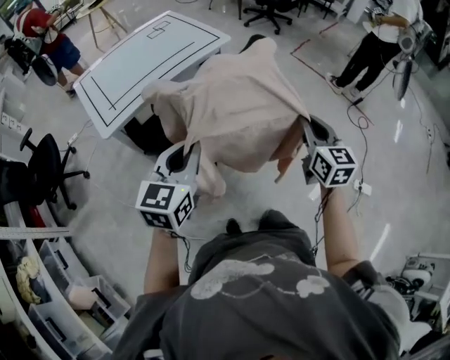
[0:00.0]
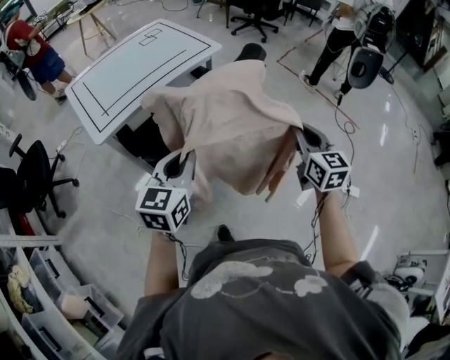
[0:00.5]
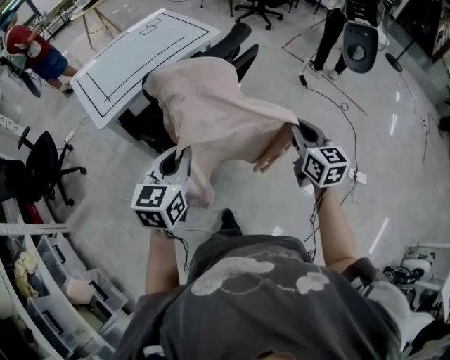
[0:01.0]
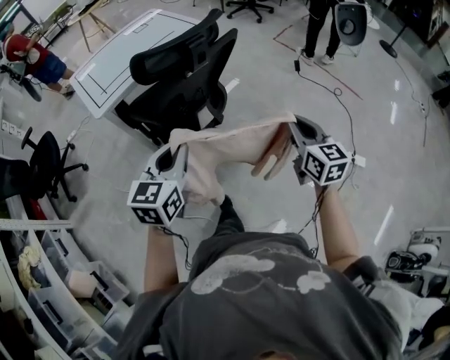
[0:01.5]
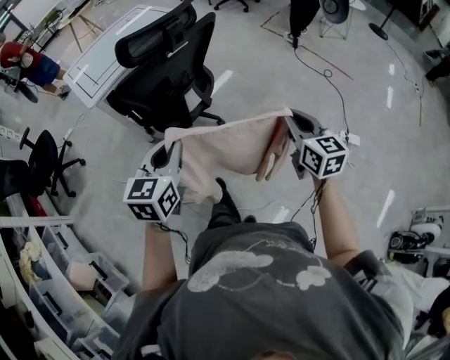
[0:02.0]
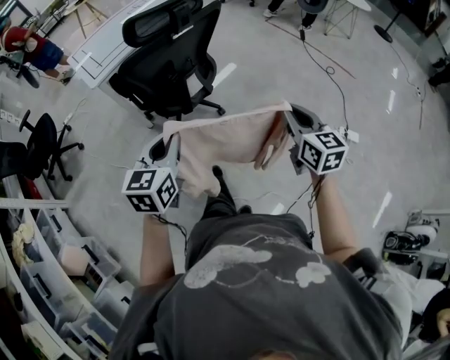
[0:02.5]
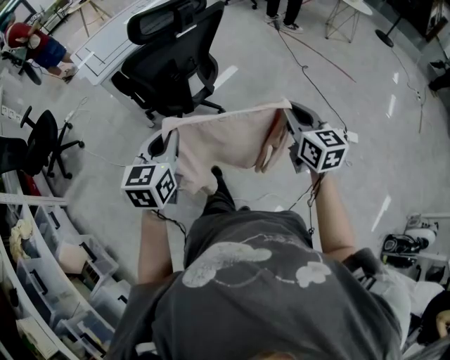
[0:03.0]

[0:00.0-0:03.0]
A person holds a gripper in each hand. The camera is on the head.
0:00.0 to 0:01.5: Both grippers move backward, approximately 15 cm.
0:01.5 to 0:03.0: The two grippers go roughly 15 cm backward.

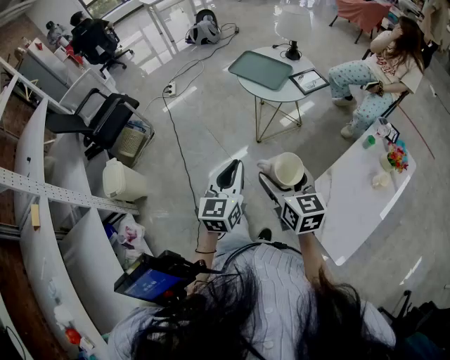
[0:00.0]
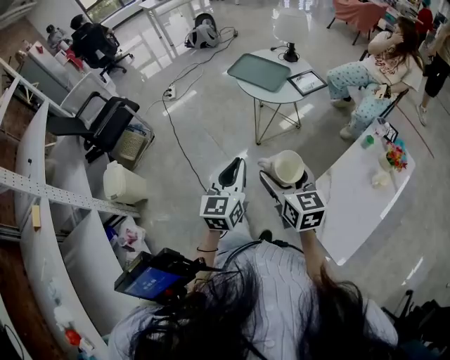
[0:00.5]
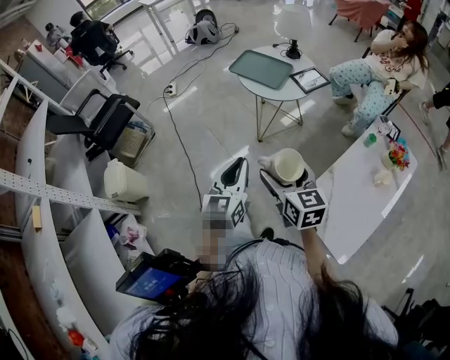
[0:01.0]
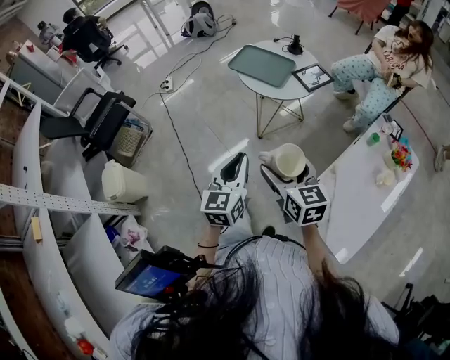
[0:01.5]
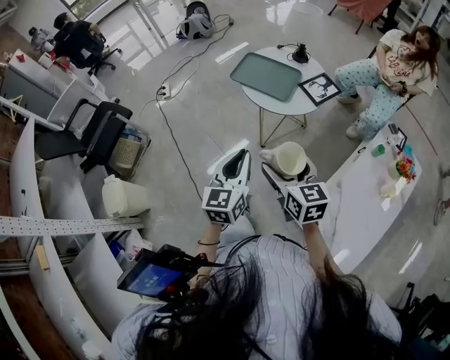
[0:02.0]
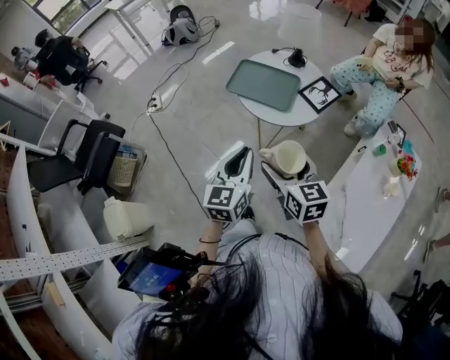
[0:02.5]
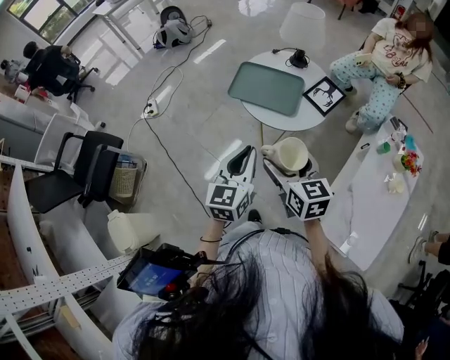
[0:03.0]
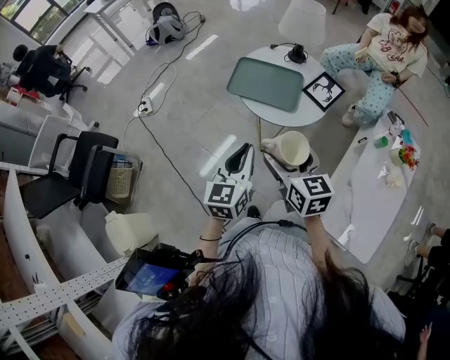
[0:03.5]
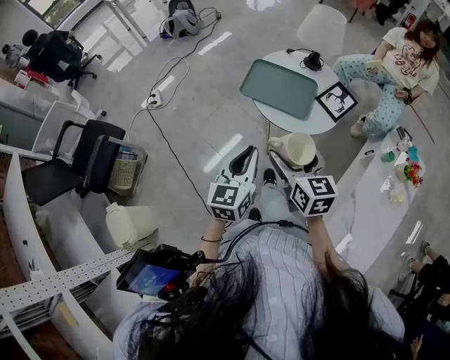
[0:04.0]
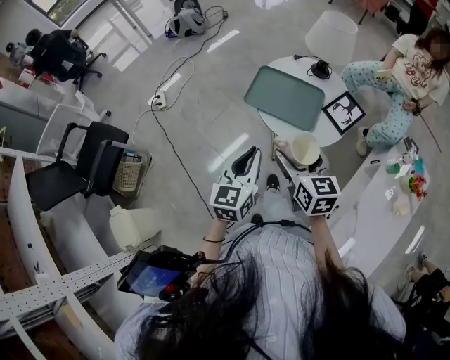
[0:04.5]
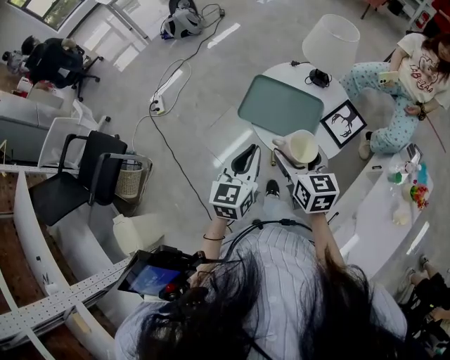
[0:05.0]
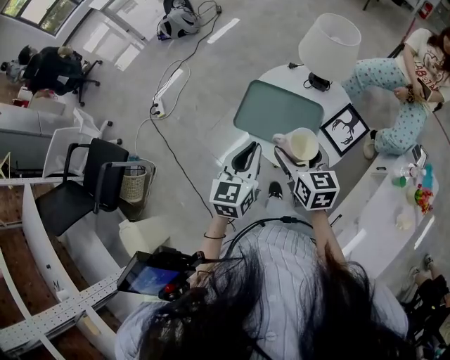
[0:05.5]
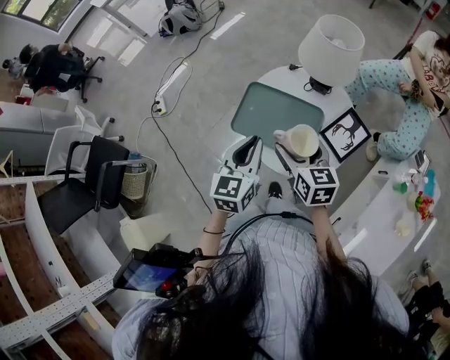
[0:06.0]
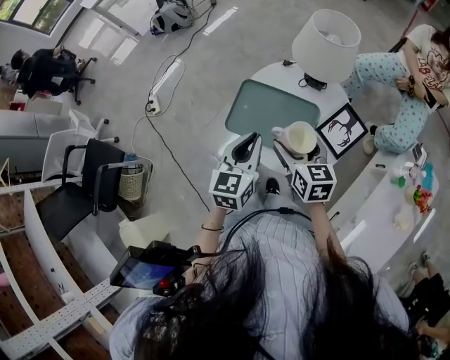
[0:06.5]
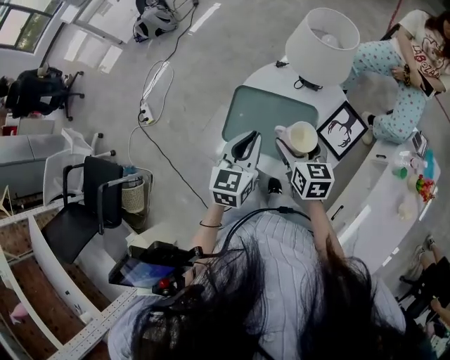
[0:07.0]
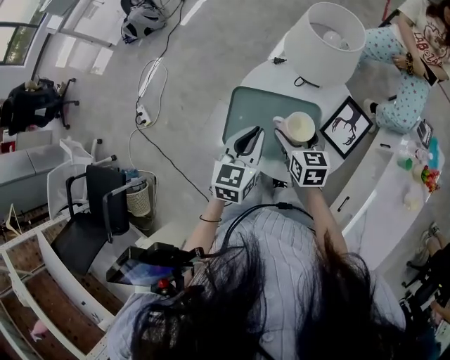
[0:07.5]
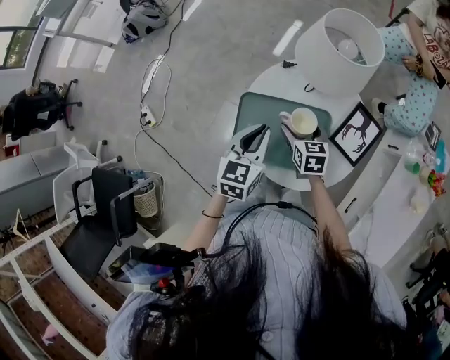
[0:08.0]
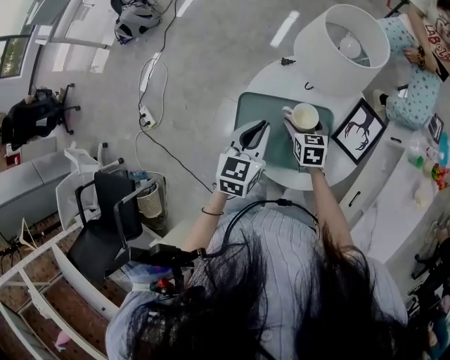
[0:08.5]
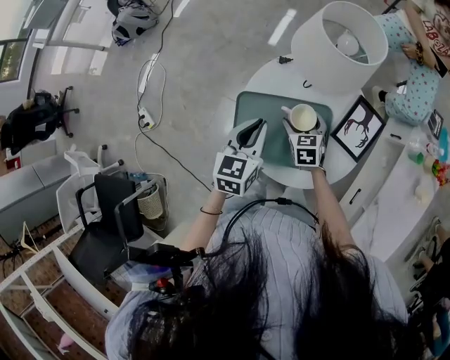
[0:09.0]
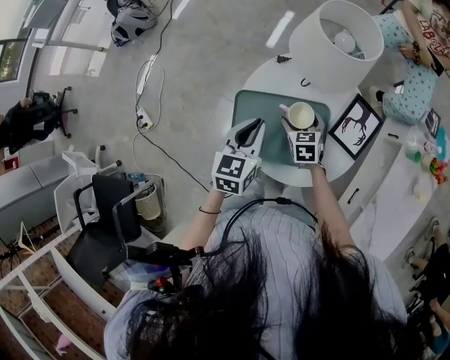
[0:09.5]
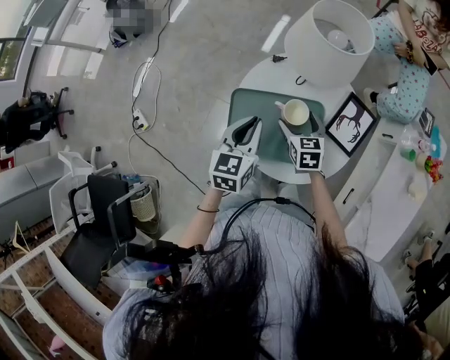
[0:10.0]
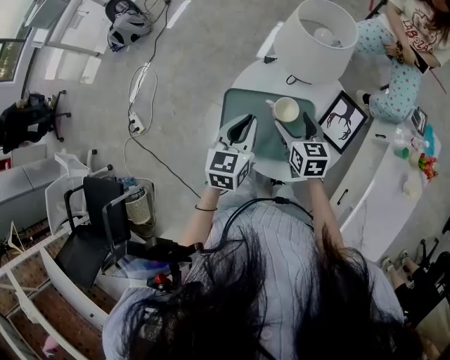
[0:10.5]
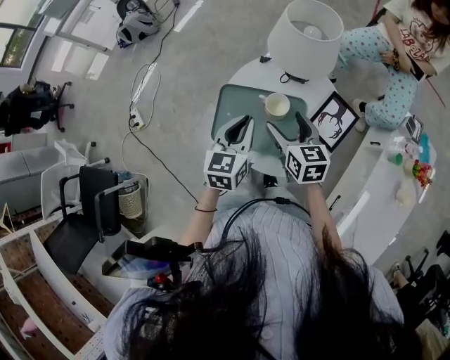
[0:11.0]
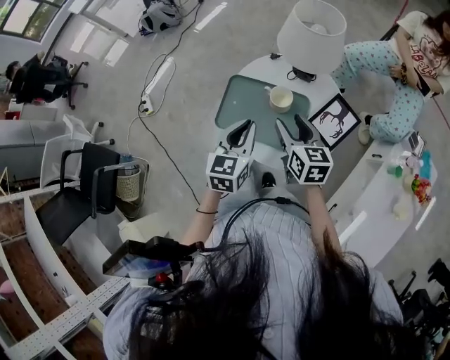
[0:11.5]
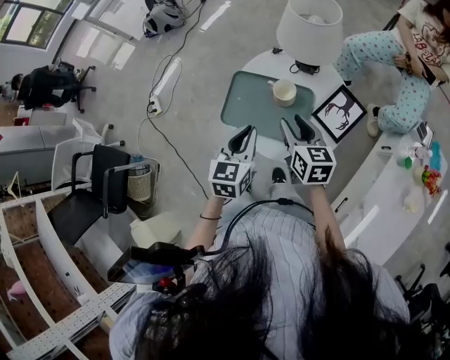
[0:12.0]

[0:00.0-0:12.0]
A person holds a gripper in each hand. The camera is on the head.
0:00.0 to 0:02.0: Both grippers travel together forward, roughly 15 cm.
0:02.0 to 0:04.0: The grippers both shift forward and to the left by some 20 cm.
0:04.0 to 0:06.0: Both grippers travel together forward, about 25 cm.
0:06.0 to 0:08.0: The left gripper heads forward and downward, covering roughly 15 cm, and turns by approximately 20 degrees, while the right gripper heads downward and forward, covering about 20 cm, and swivels approximately 20 degrees.
0:08.0 to 0:10.0: There are only small adjustments of the grippers.
0:10.0 to 0:12.0: The right gripper shifts approximately 15 cm upward and backward, changes its angle by roughly 20 degrees, and closes its fingers. The left gripper shifts about 15 cm backward.

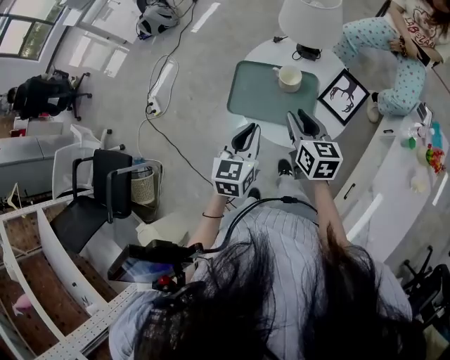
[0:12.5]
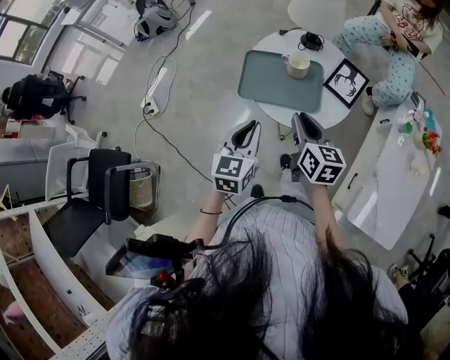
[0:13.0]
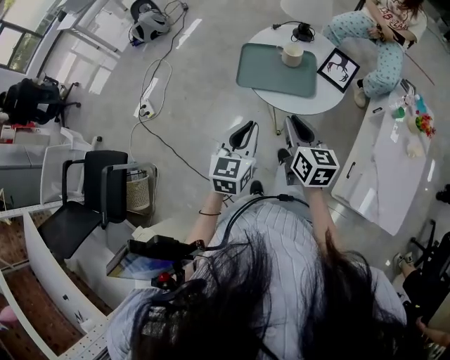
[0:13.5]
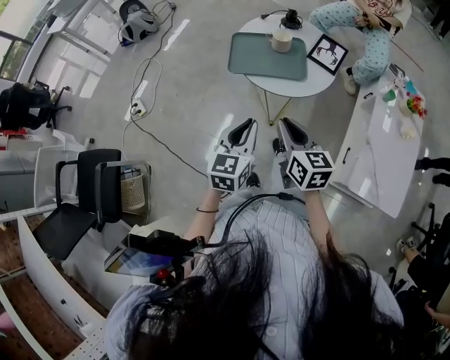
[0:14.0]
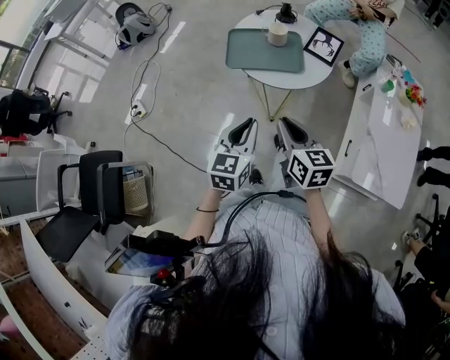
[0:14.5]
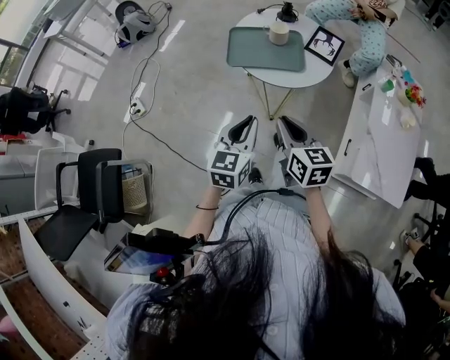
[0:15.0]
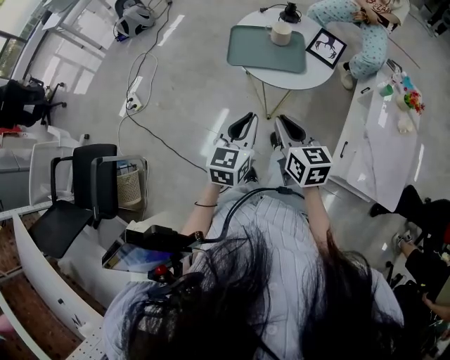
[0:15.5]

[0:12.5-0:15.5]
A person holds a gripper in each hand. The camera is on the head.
0:12.5 to 0:14.0: Both grippers move backward, some 25 cm.
0:14.0 to 0:15.5: There are only small adjustments of the grippers.

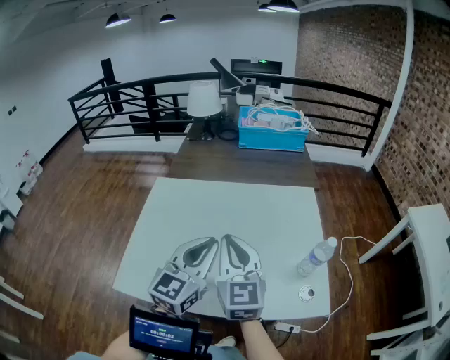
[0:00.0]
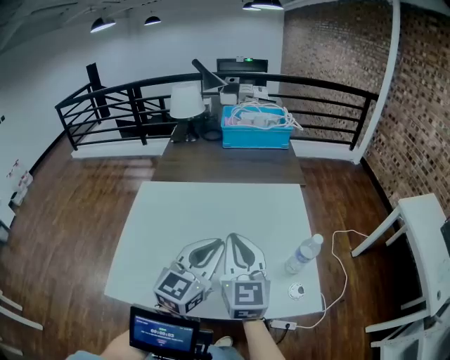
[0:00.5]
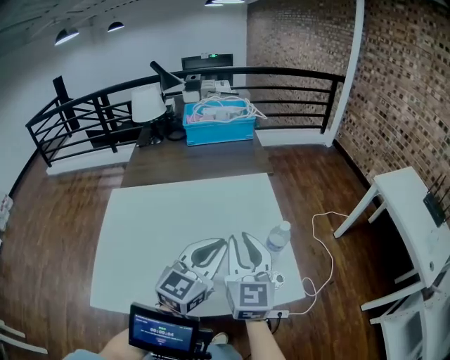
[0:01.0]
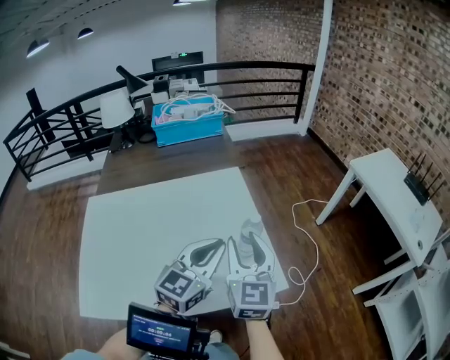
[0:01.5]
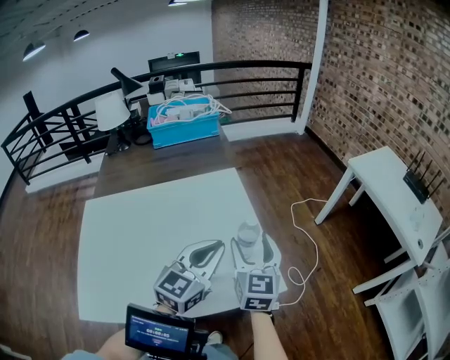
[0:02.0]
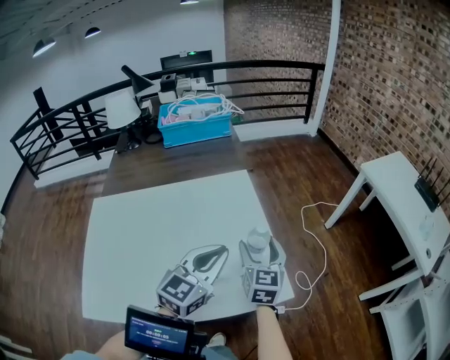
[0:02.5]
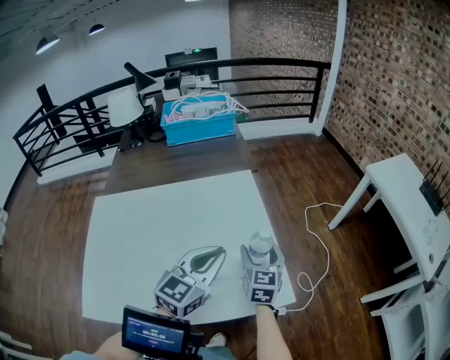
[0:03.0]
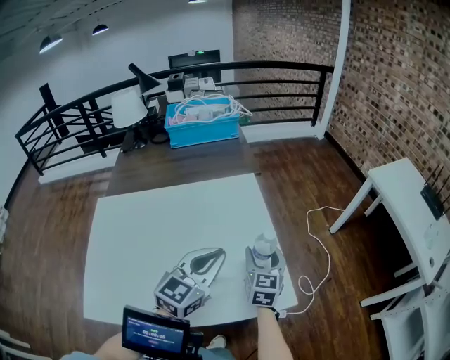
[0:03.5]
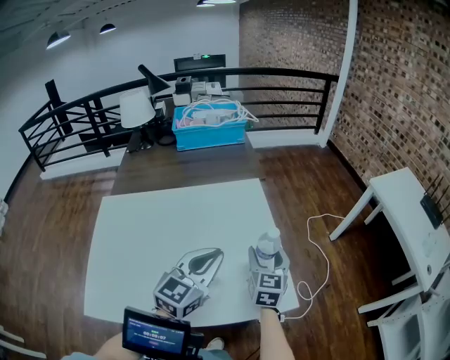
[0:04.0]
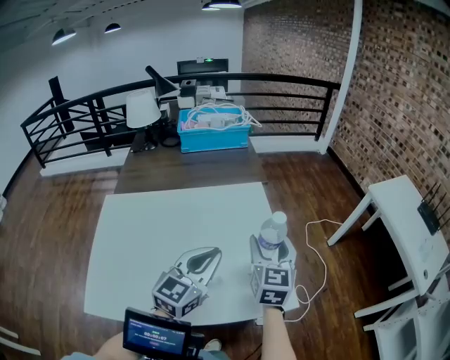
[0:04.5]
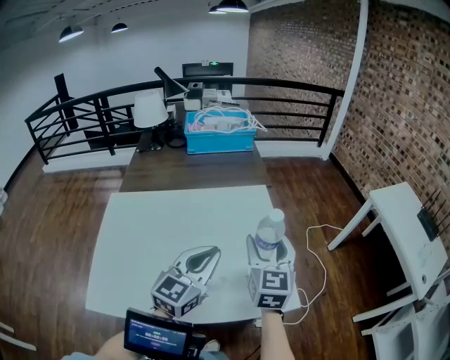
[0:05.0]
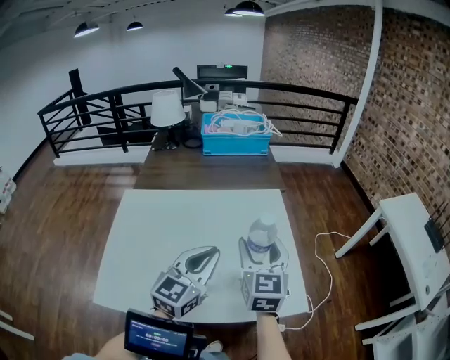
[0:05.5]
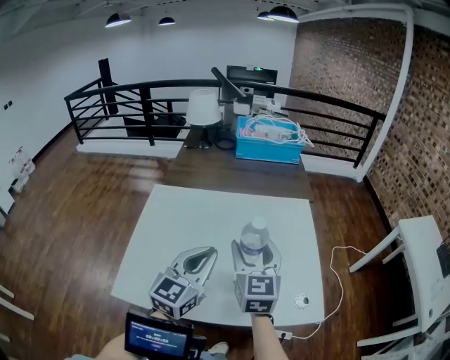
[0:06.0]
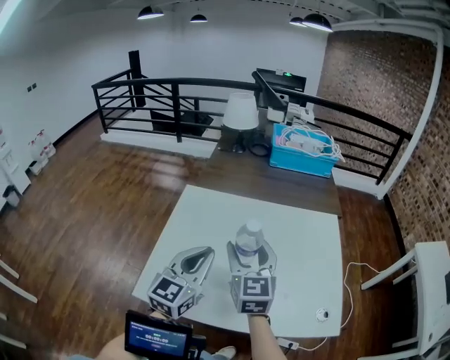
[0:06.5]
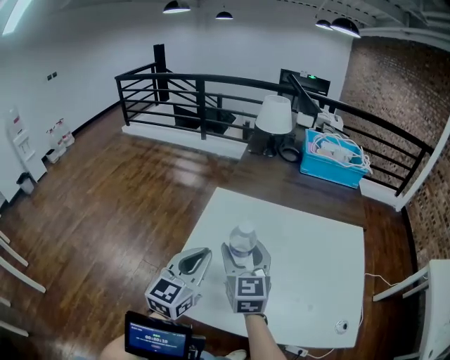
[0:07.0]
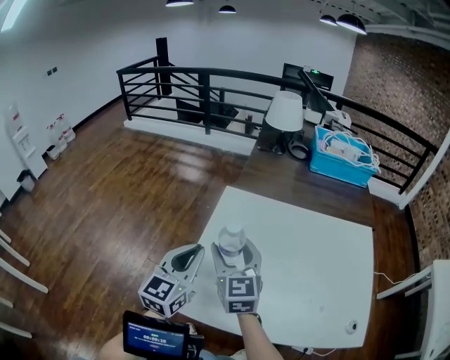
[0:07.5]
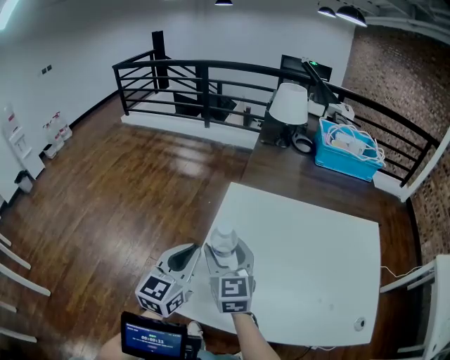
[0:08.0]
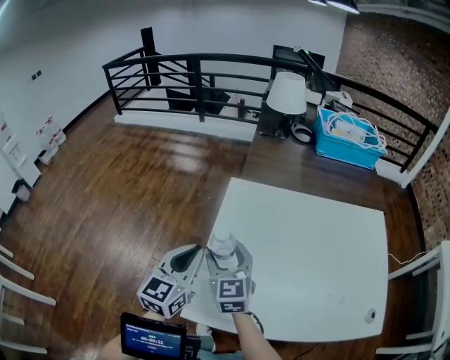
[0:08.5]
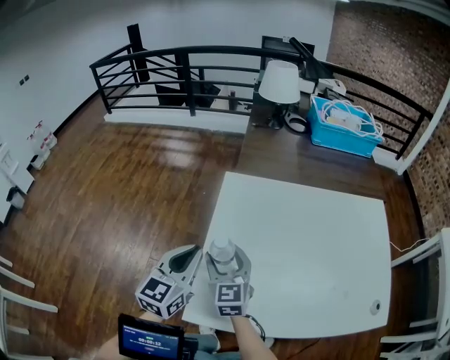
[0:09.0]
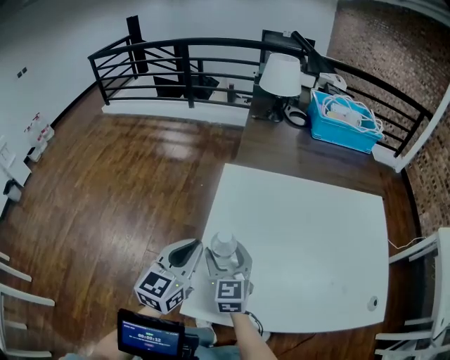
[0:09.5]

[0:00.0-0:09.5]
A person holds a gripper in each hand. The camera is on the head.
0:00.0 to 0:02.0: The right gripper moves some 30 cm, turns by approximately 30 degrees, and opens up; the left gripper moves some 25 cm, and rotates roughly 30 degrees.
0:02.0 to 0:04.0: The left gripper is displaced to the left by roughly 5 cm. The right gripper goes roughly 10 cm downward.
0:04.0 to 0:05.5: The left gripper shifts about 10 cm to the left; the right gripper shifts some 20 cm upward, to the left and backward.
0:05.5 to 0:07.5: Both grippers are carried some 40 cm. The left gripper rotates some 30 degrees. The right gripper rotates some 30 degrees.
0:07.5 to 0:09.5: The left gripper travels downward by roughly 5 cm. The right gripper moves downward and to the left, about 15 cm.
